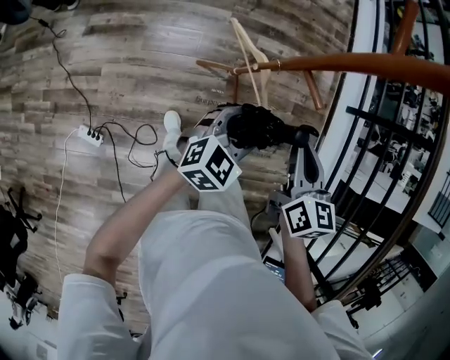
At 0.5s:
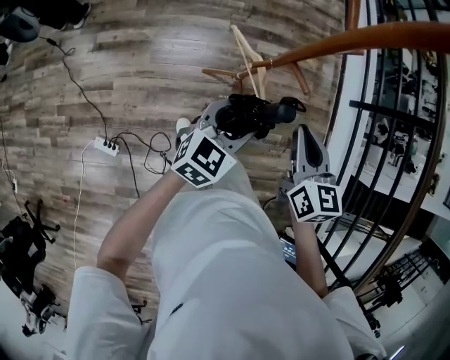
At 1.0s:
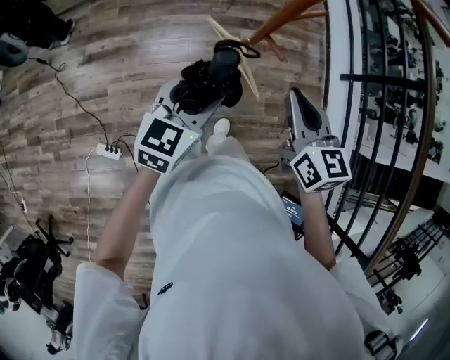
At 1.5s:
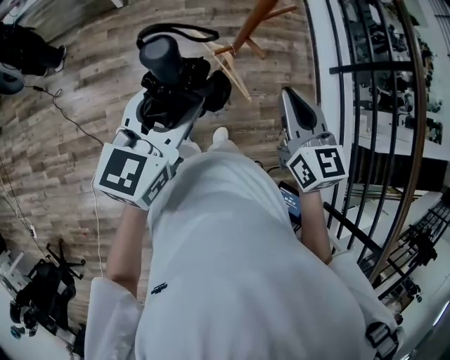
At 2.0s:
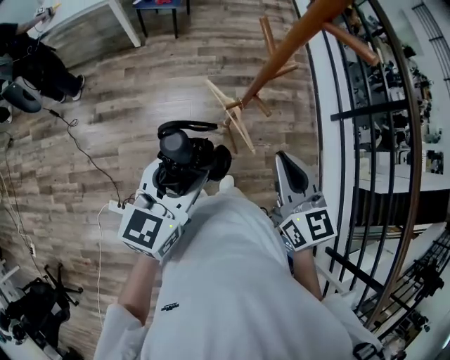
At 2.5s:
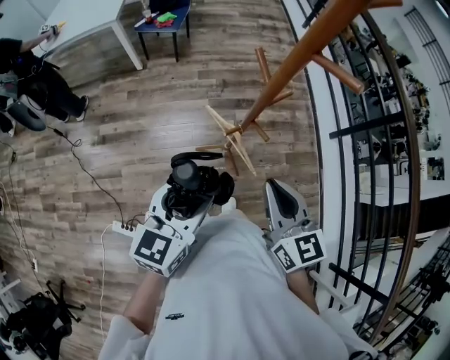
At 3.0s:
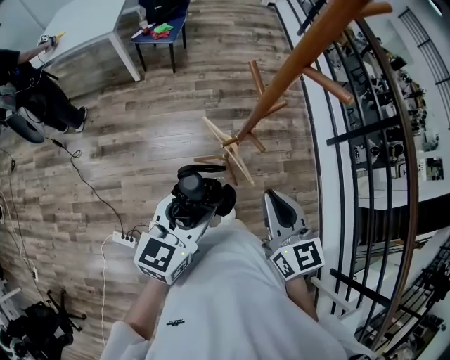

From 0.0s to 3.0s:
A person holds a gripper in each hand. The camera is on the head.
From 0.0s to 1.5s: The left gripper shifts some 30 cm upward and to the left, and turns by some 20 degrees. Meanwhile the right gripper travels upward by roughly 15 cm.
From 1.5s to 3.0s: There are only small adjustments of the grippers.

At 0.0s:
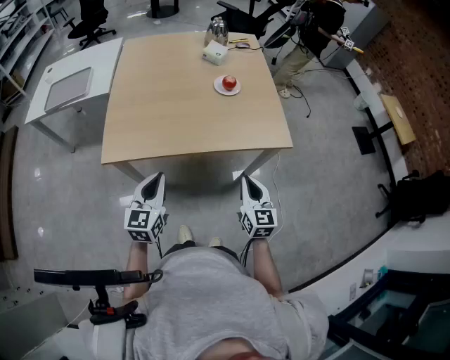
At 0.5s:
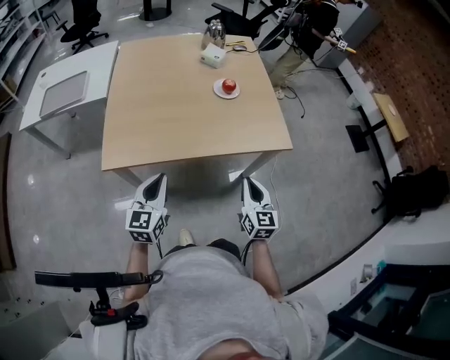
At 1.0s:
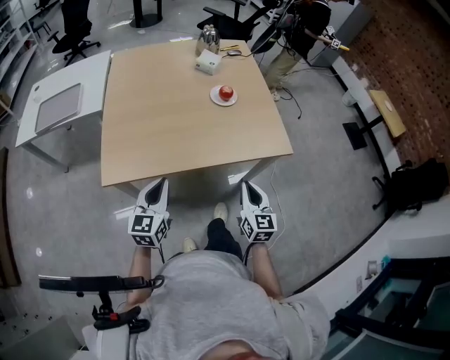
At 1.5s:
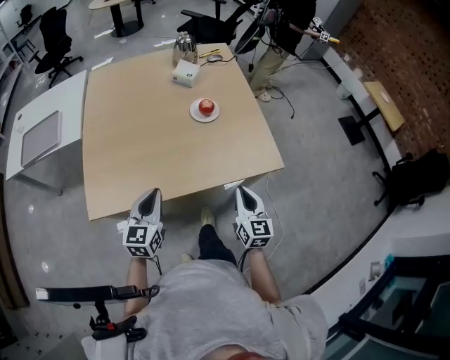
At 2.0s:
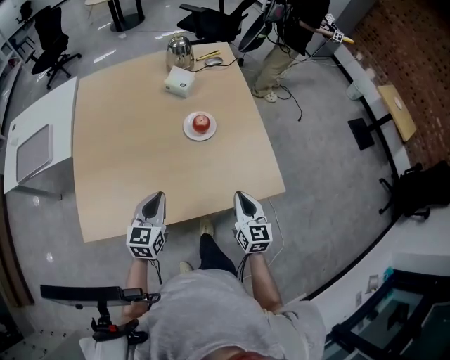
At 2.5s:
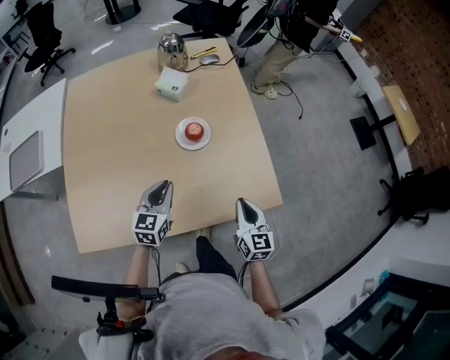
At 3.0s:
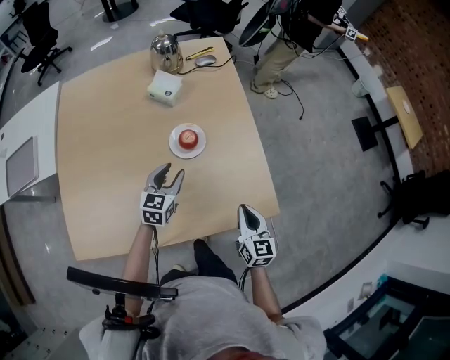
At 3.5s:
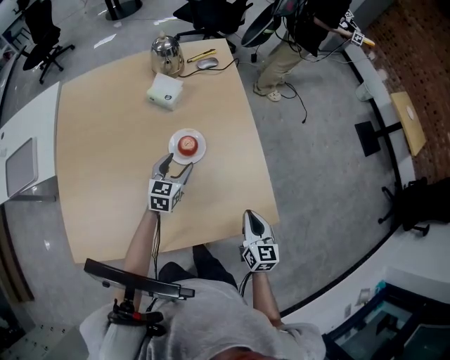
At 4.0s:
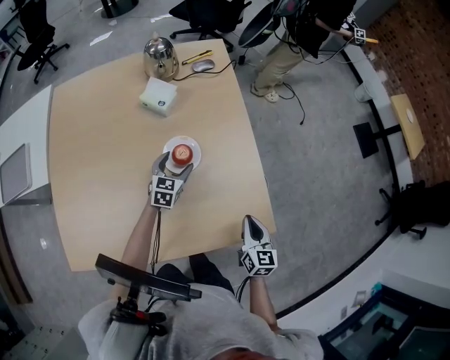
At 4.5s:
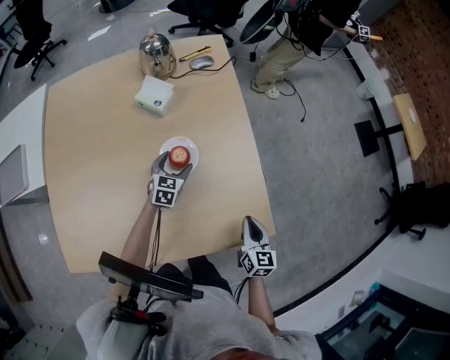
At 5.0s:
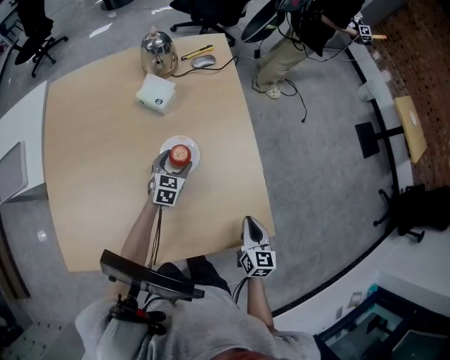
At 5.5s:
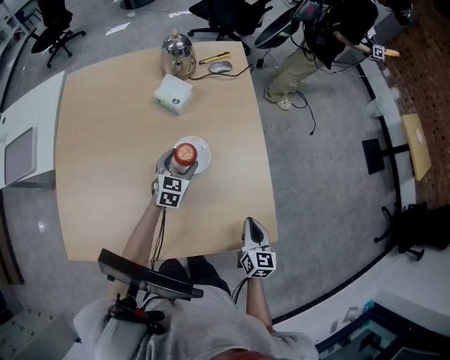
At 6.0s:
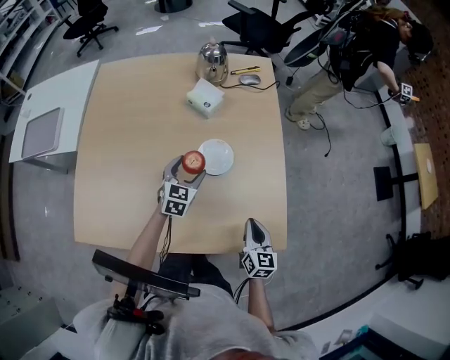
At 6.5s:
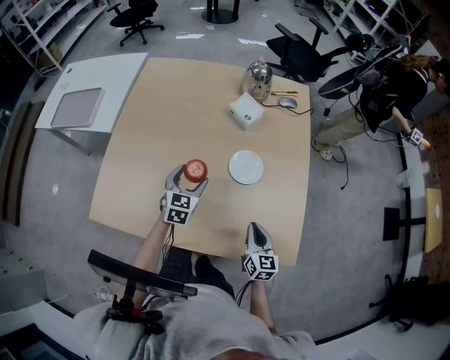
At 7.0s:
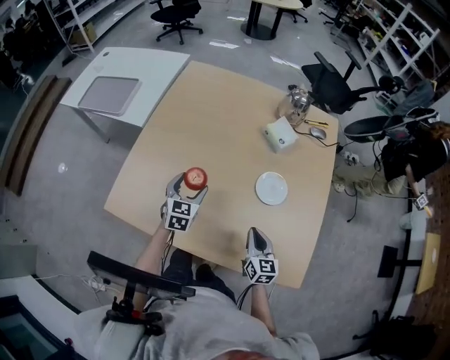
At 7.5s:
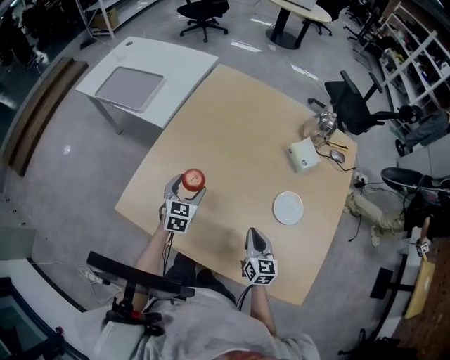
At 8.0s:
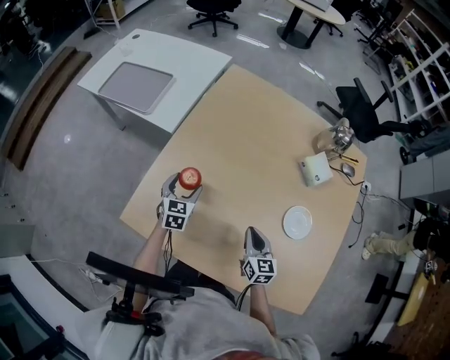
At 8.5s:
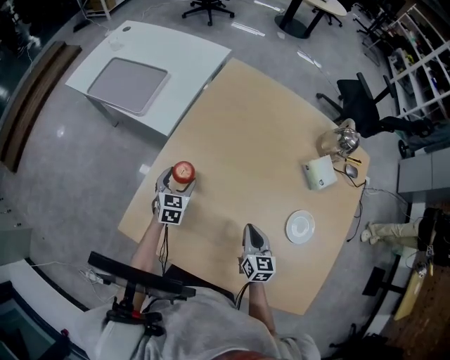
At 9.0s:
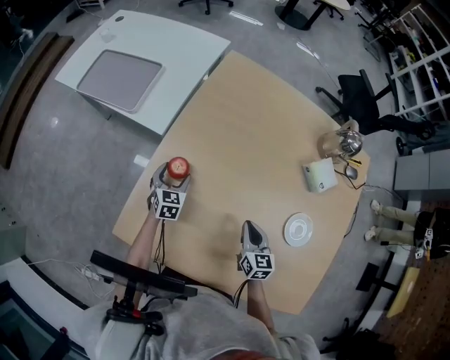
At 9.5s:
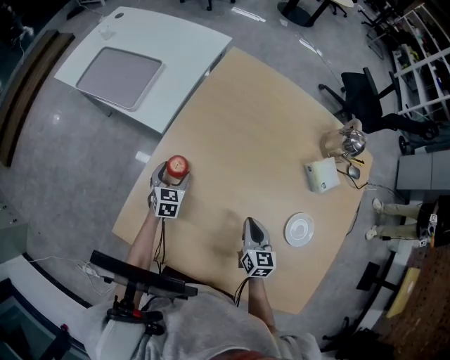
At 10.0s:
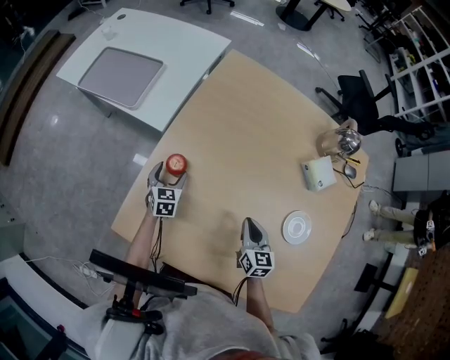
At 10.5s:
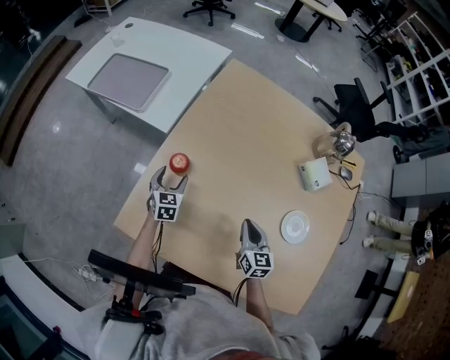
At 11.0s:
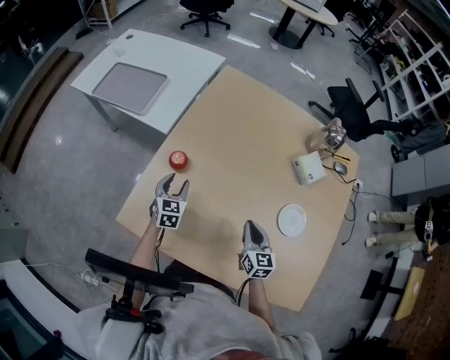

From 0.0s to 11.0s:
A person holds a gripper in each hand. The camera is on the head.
From 0.0s to 2.0s: The two grippers go approximately 25 cm forward.
From 2.0s to 3.5s: The right gripper heads to the right and forward, covering about 10 cm. Meanwhile the left gripper goes about 30 cm forward and downward, and opens up.
From 3.5s to 5.5s: The left gripper shifts about 5 cm forward, while the right gripper moves some 5 cm.
From 5.5s to 7.5s: The right gripper changes place by some 35 cm, and turns by some 40 degrees, while the left gripper ends up roughly 40 cm from where it was, and turns by approximately 40 degrees.
From 7.5s to 9.0s: The right gripper shifts roughly 15 cm forward and to the left; the left gripper moves forward, to the left and downward, roughly 20 cm.
From 9.0s to 11.0s: The left gripper goes roughly 10 cm backward and upward, and closes its fingers. Meanwhile the right gripper moves backward, about 5 cm.

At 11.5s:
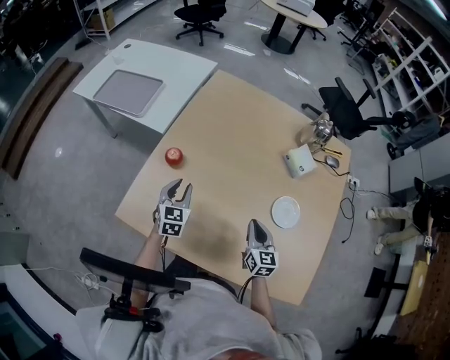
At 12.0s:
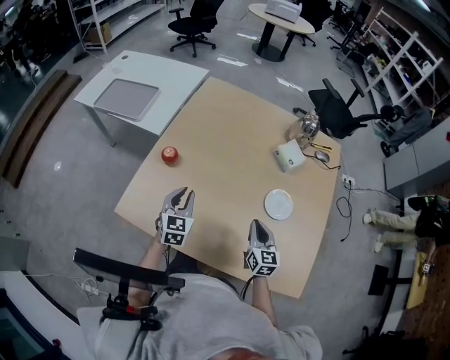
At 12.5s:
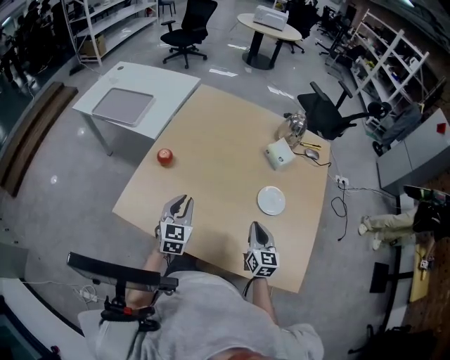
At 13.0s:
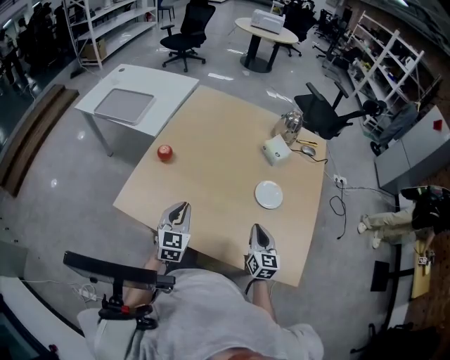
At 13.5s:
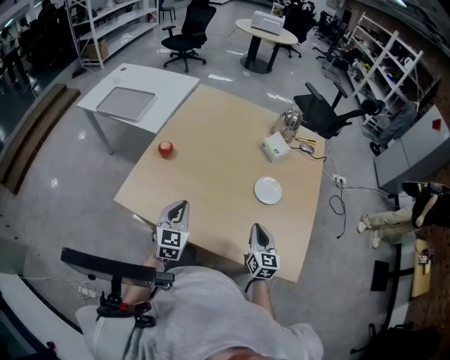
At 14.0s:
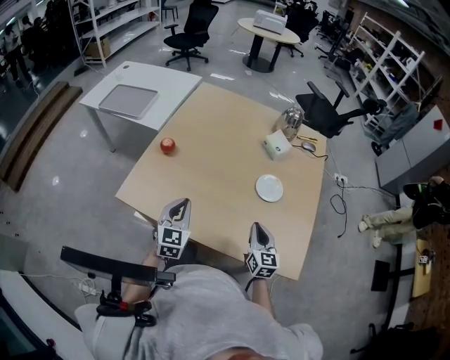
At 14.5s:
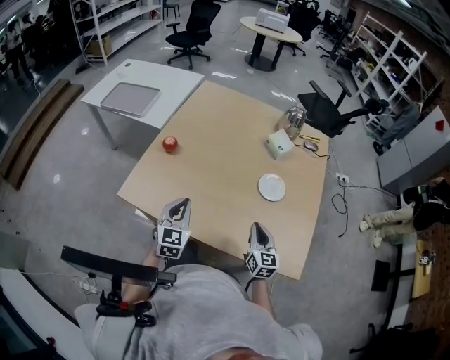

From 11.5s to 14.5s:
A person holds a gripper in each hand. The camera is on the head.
From 11.5s to 13.0s: Both grippers move backward and to the right, about 20 cm.
From 13.0s to 14.5s: The grippers make only small movements.

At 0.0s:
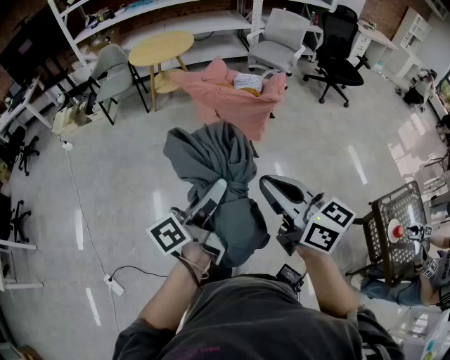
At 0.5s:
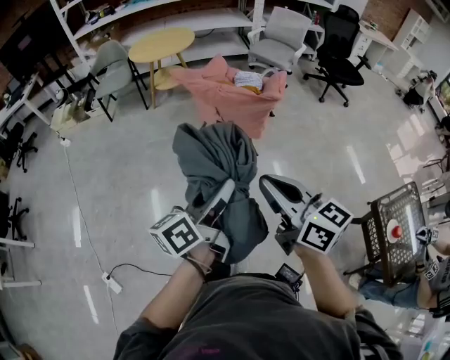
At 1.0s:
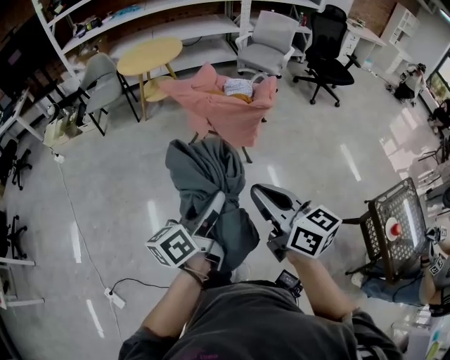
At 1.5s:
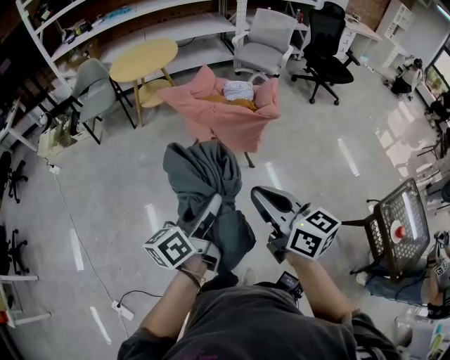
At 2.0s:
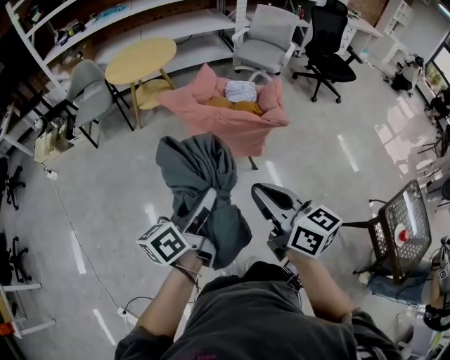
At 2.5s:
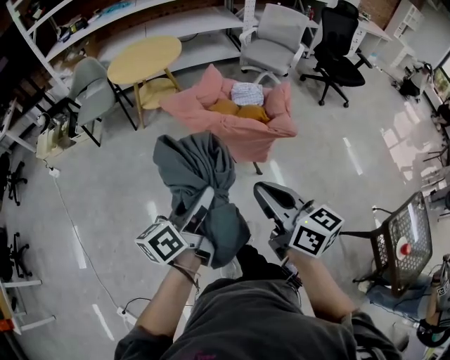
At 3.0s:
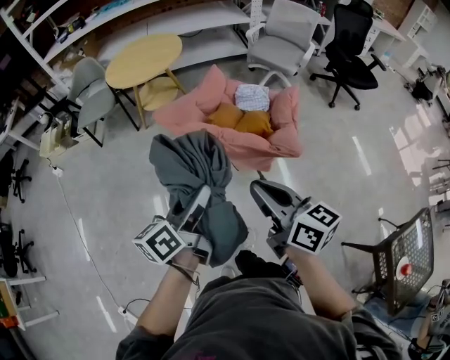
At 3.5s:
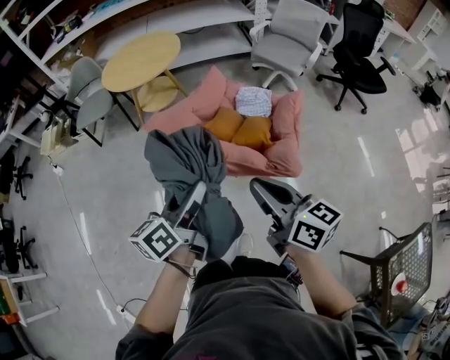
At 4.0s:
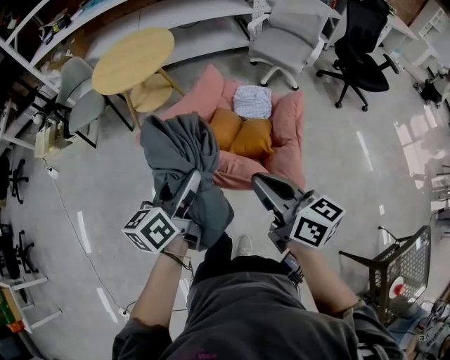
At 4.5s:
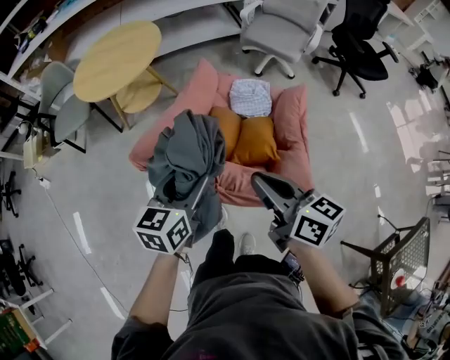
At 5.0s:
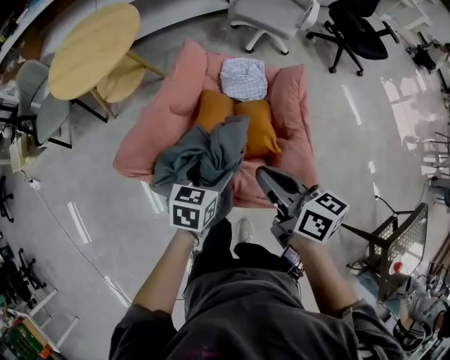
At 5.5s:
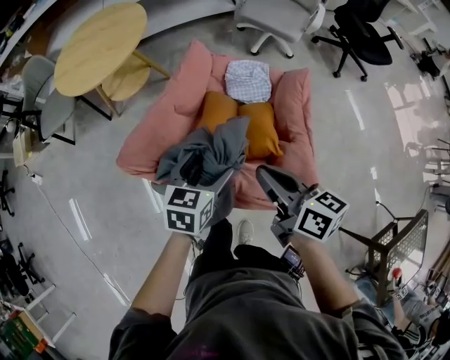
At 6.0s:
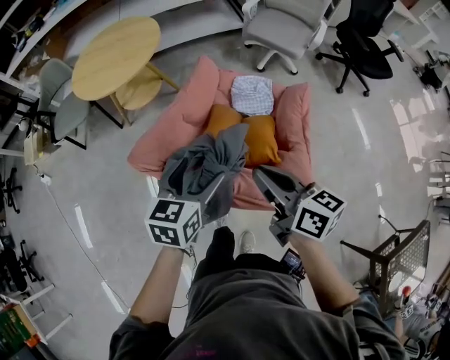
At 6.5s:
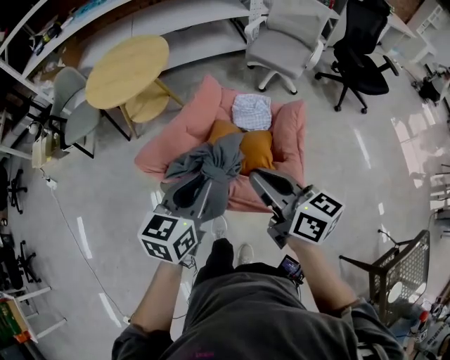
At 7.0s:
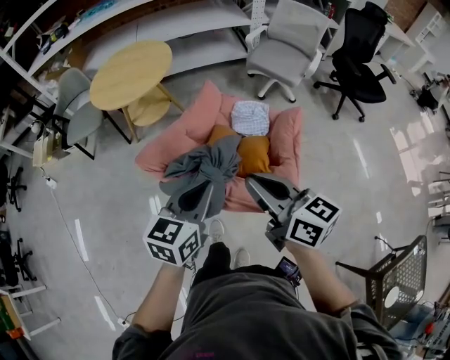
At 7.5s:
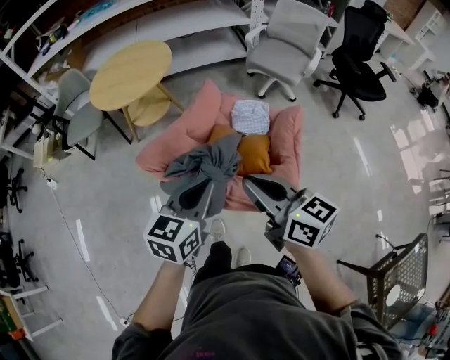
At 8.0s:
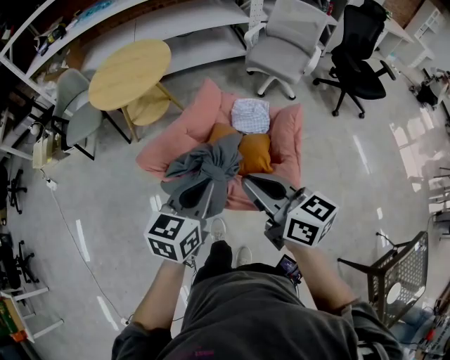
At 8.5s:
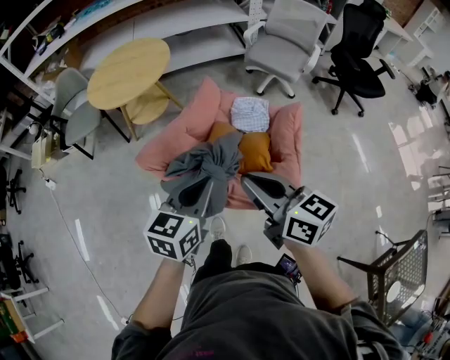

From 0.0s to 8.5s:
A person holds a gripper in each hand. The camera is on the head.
From 0.0s to 2.0s: Both grippers travel together forward, roughly 20 cm. The left gripper turns by roughly 20 degrees.
From 2.0s to 4.0s: Both grippers travel together forward, some 35 cm.
From 4.0s to 6.5s: The grippers both shift forward by about 10 cm. The left gripper moves about 20 cm downward and comes back, rotates some 30 degrees, and closes its fingers.
From 6.5s to 8.5s: There are only small adjustments of the grippers.

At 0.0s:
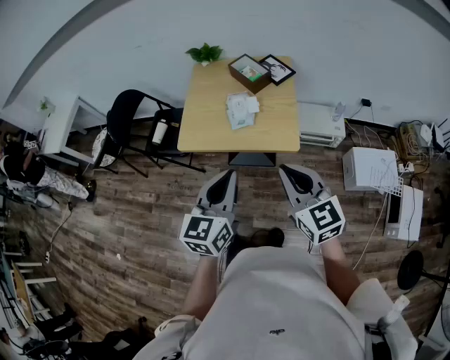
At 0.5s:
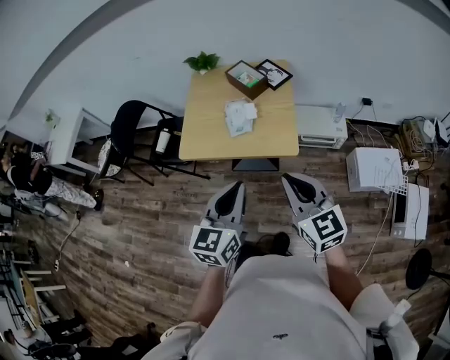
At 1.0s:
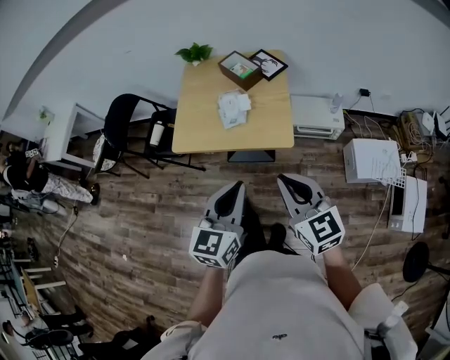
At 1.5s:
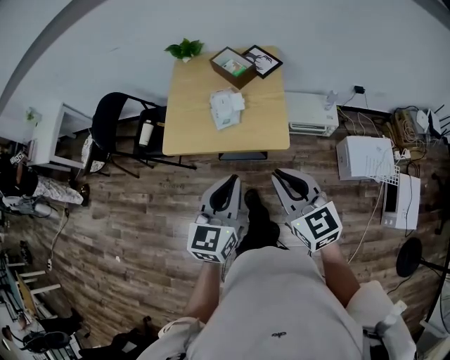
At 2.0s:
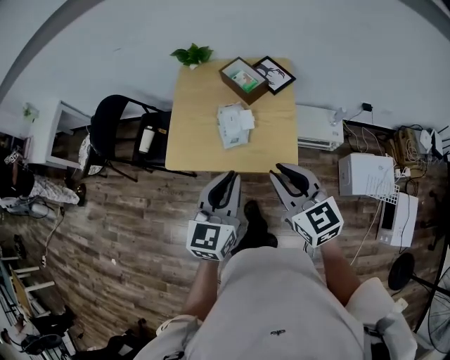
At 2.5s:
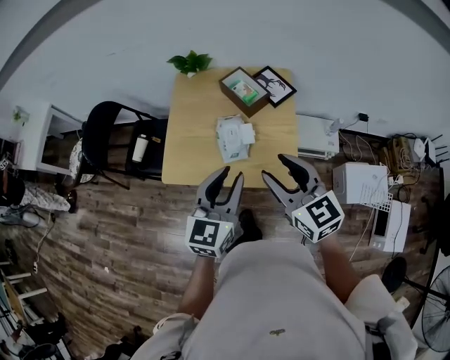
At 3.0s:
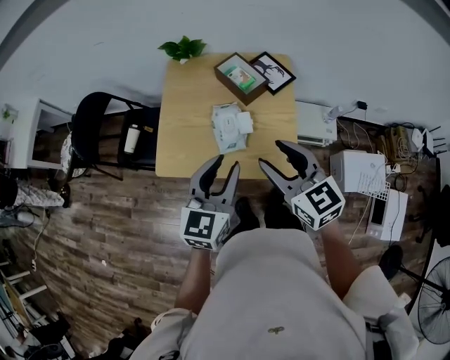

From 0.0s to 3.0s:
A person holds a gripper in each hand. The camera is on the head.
From 0.0s to 1.5s: The left gripper is displaced to the right by about 5 cm.
From 1.5s to 3.0s: Both grippers move forward, approximately 20 cm. The left gripper opens up; the right gripper opens its fingers.
